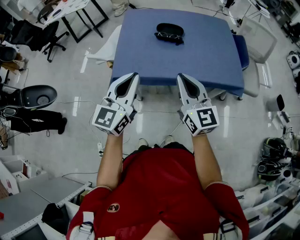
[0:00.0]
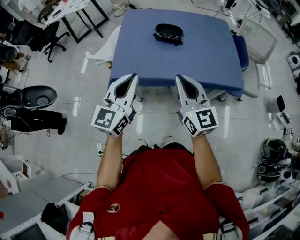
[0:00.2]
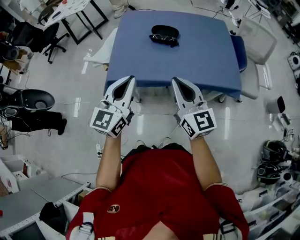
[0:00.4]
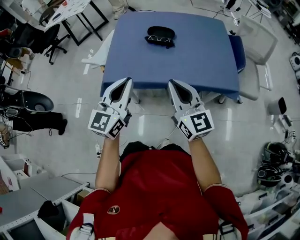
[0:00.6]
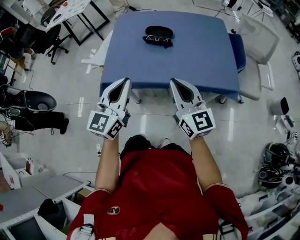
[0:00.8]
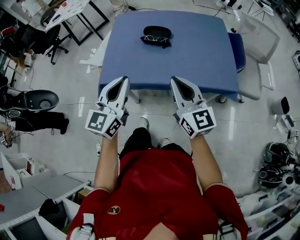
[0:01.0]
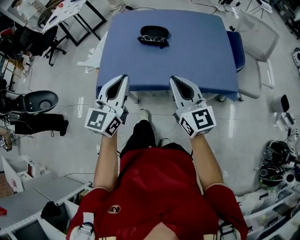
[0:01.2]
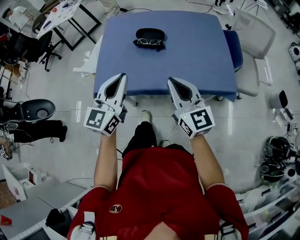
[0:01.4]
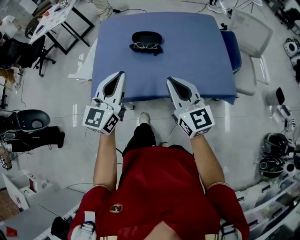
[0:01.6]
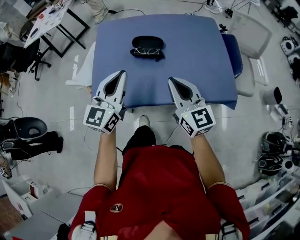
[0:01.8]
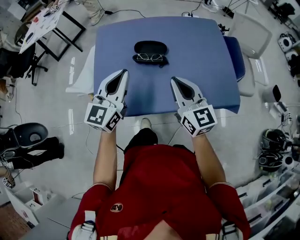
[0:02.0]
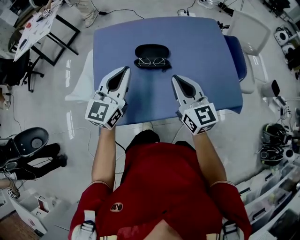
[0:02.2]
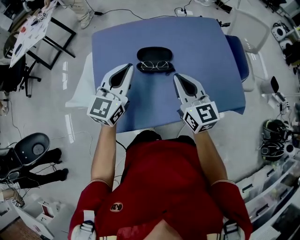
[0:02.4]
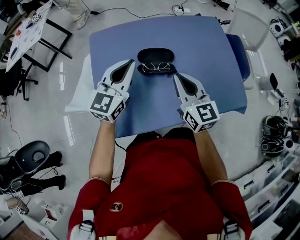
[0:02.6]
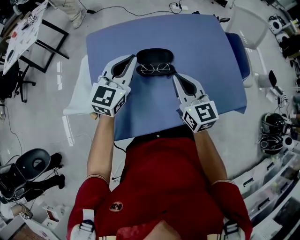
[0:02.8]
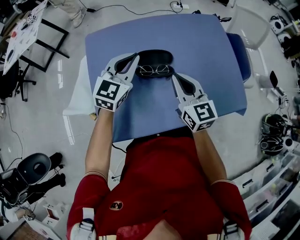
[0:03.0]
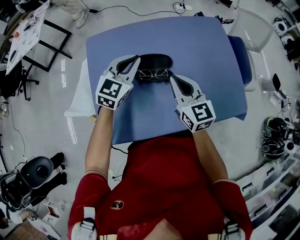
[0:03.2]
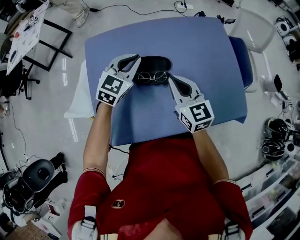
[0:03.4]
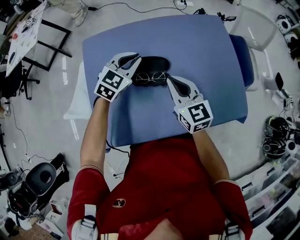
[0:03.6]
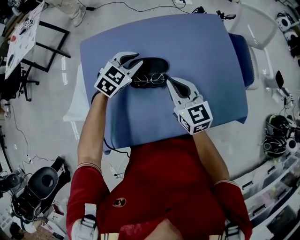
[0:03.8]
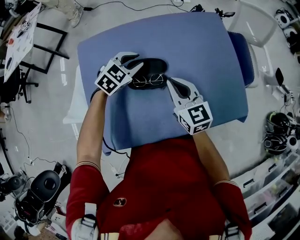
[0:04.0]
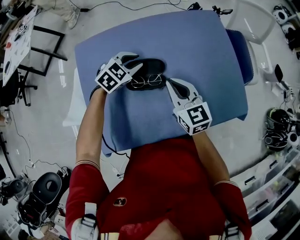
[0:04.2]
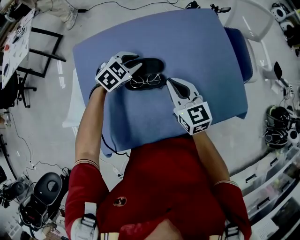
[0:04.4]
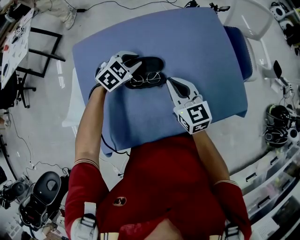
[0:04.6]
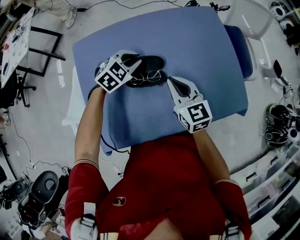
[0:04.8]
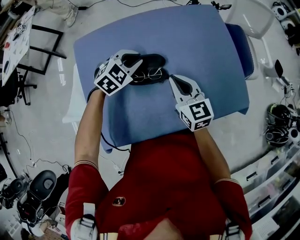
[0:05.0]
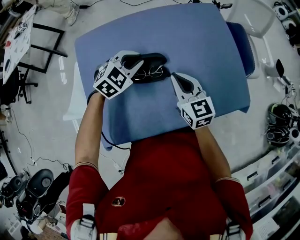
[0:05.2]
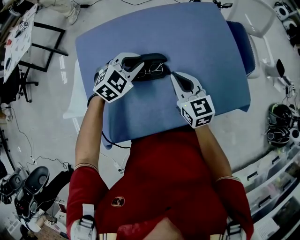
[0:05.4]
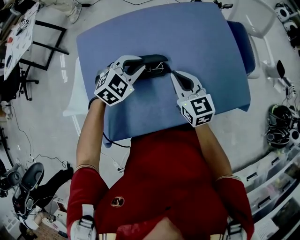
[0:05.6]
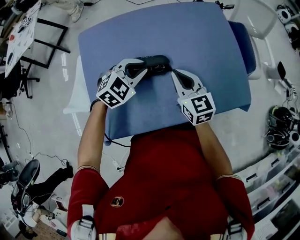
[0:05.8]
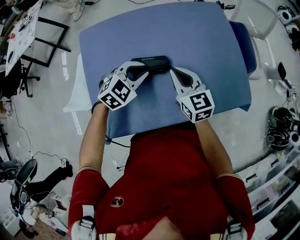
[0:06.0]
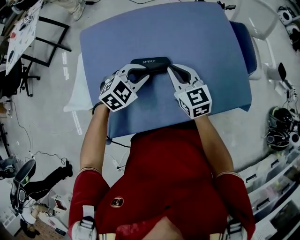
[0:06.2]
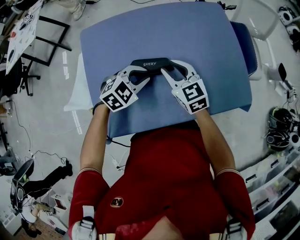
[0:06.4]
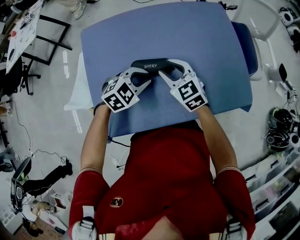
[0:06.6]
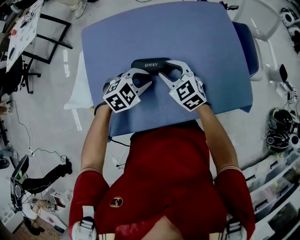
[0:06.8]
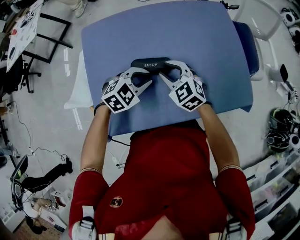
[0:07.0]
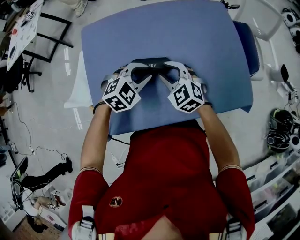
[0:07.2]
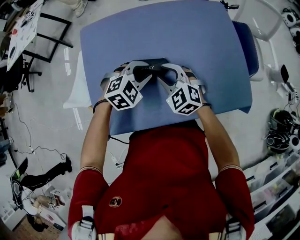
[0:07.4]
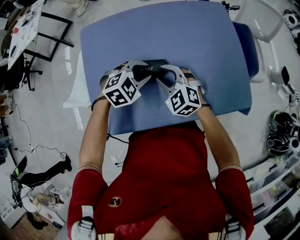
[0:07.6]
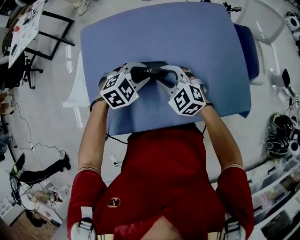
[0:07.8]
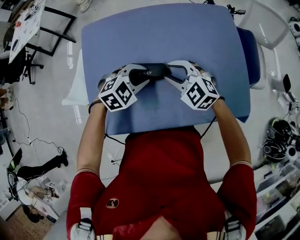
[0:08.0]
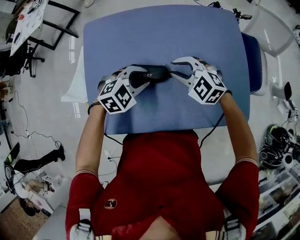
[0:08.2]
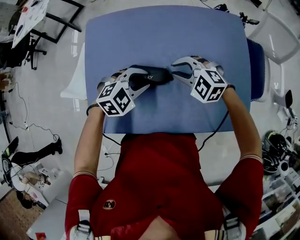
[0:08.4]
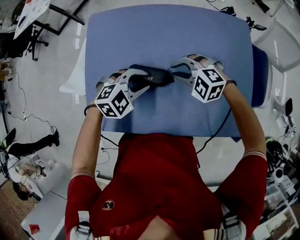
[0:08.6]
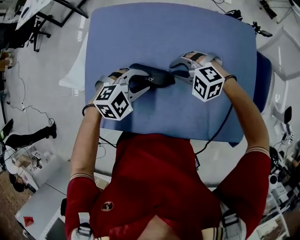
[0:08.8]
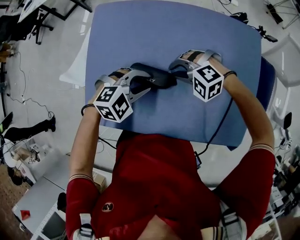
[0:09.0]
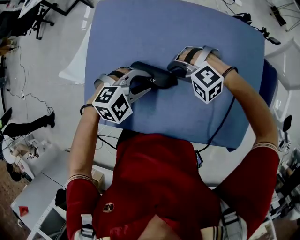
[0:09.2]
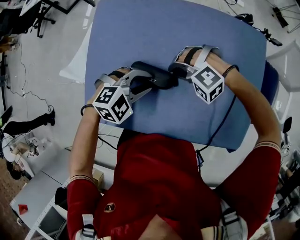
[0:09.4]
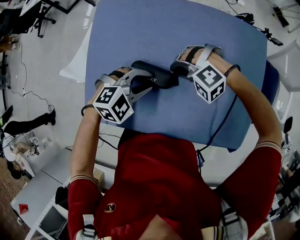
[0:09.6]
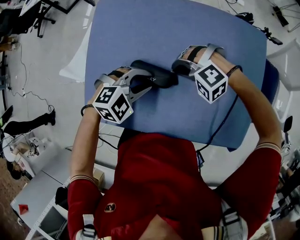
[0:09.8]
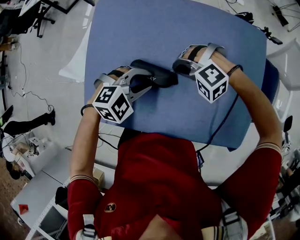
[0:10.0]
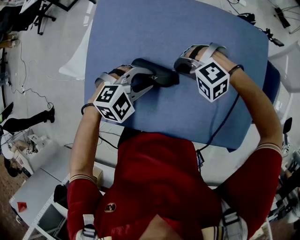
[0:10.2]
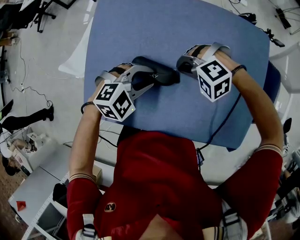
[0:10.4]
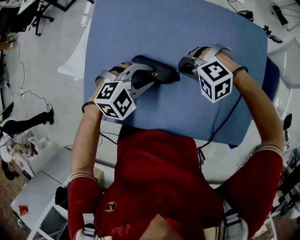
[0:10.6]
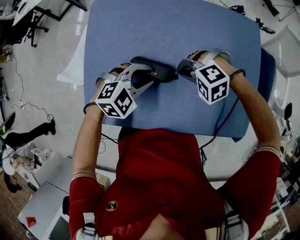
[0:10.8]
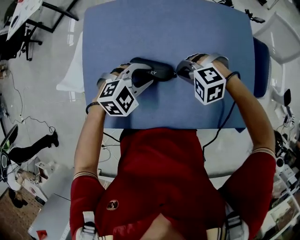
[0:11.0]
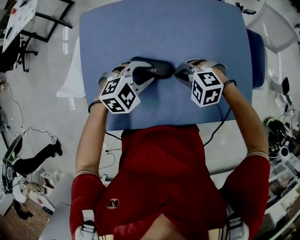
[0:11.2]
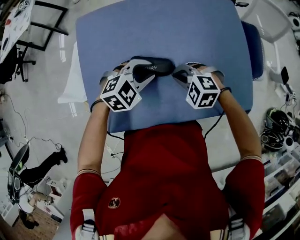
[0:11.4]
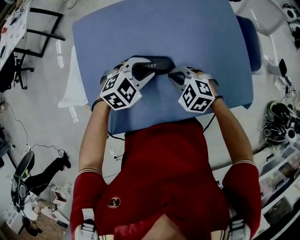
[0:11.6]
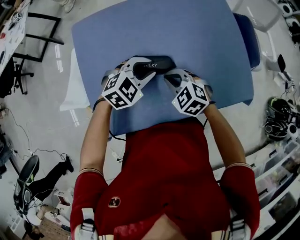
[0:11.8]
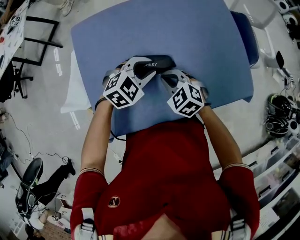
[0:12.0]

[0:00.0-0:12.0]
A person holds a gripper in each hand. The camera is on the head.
0:00.0 to 0:01.6: Both grippers travel together forward and to the right, approximately 15 cm.
0:01.6 to 0:03.0: The left gripper heads forward, covering roughly 30 cm, and rotates approximately 20 degrees. Meanwhile the right gripper shifts approximately 25 cm forward and to the left.
0:03.0 to 0:04.4: The left gripper shifts about 15 cm downward, forward and to the right, tips its fingers downward by some 30 degrees, and opens up; the right gripper shifts by about 10 cm.
0:04.4 to 0:06.0: The left gripper travels backward by roughly 10 cm.
0:06.0 to 0:07.6: The right gripper shifts about 5 cm downward, changes its angle by roughly 50 degrees, and opens its fingers.
0:07.6 to 0:09.0: The right gripper changes place by about 10 cm, and changes its angle by approximately 70 degrees.
0:09.0 to 0:10.4: The grippers move only a little.
0:10.4 to 0:12.0: The right gripper changes place by roughly 10 cm, and rolls clockwise, seen from behind, by about 70 degrees.

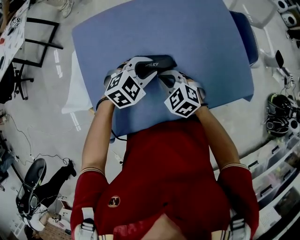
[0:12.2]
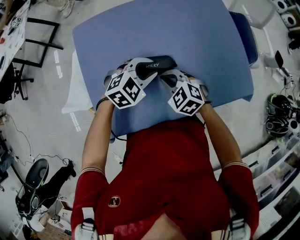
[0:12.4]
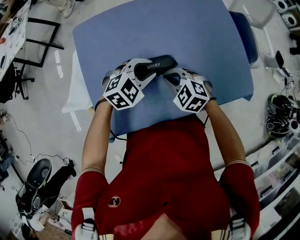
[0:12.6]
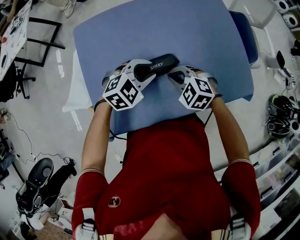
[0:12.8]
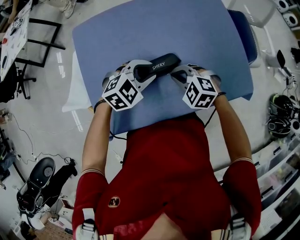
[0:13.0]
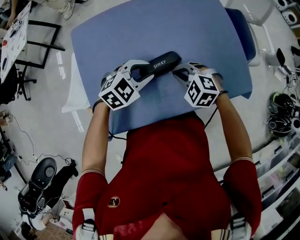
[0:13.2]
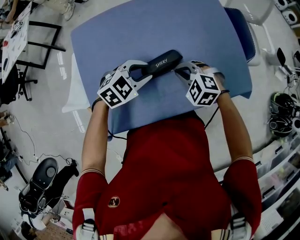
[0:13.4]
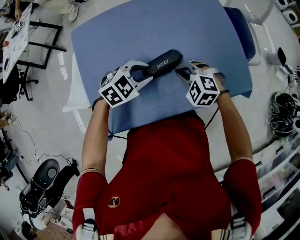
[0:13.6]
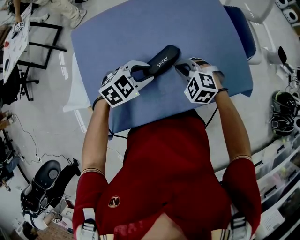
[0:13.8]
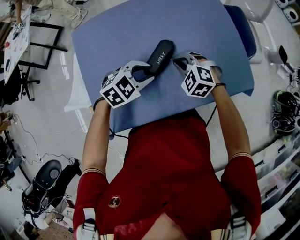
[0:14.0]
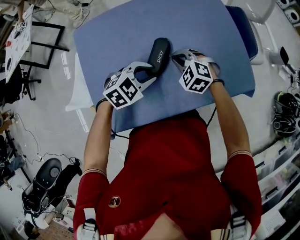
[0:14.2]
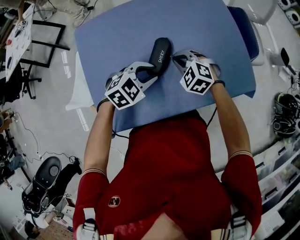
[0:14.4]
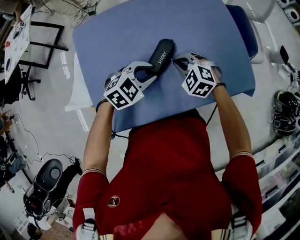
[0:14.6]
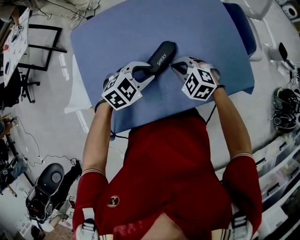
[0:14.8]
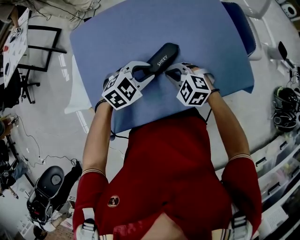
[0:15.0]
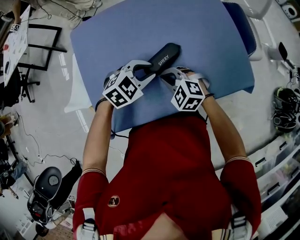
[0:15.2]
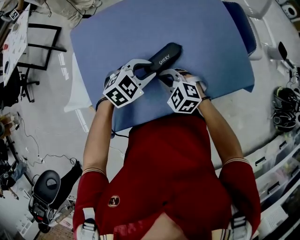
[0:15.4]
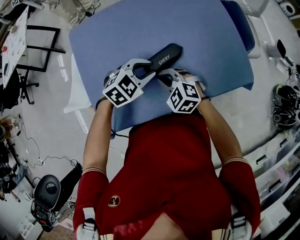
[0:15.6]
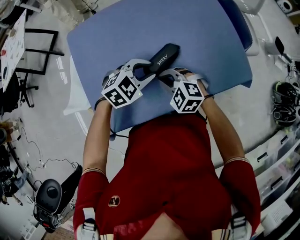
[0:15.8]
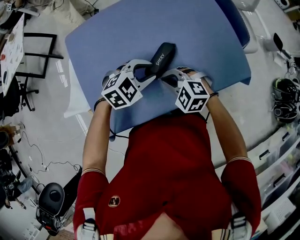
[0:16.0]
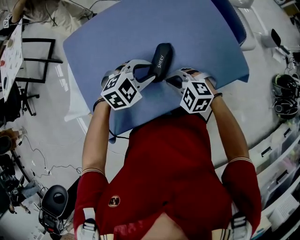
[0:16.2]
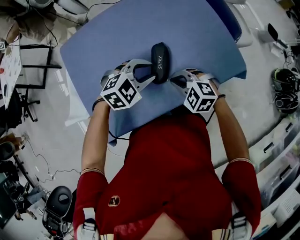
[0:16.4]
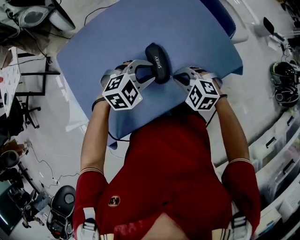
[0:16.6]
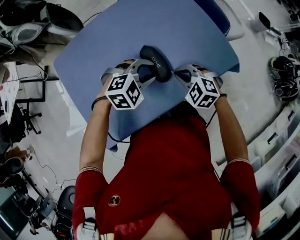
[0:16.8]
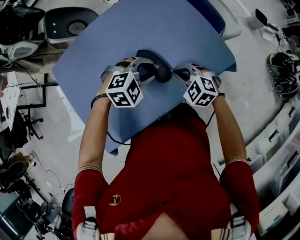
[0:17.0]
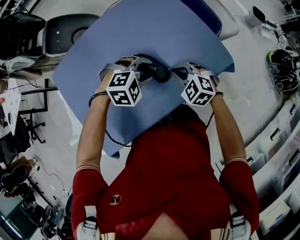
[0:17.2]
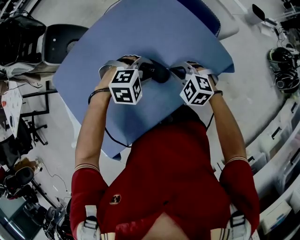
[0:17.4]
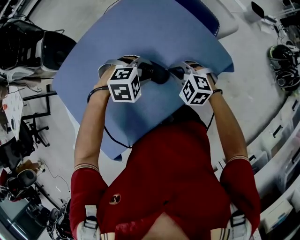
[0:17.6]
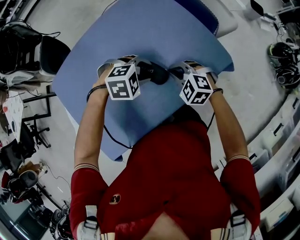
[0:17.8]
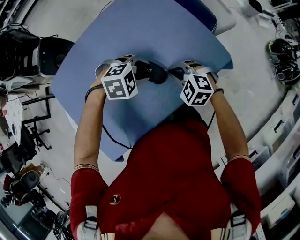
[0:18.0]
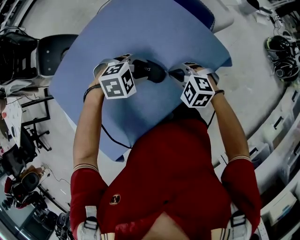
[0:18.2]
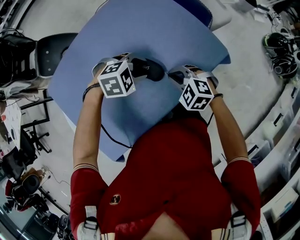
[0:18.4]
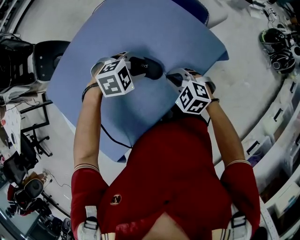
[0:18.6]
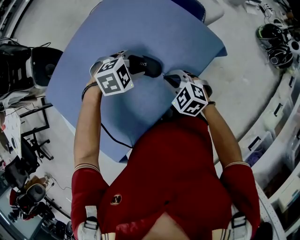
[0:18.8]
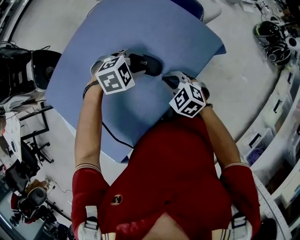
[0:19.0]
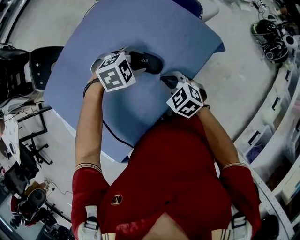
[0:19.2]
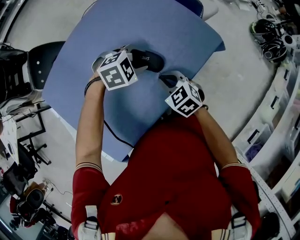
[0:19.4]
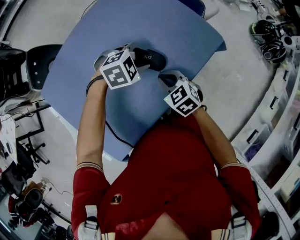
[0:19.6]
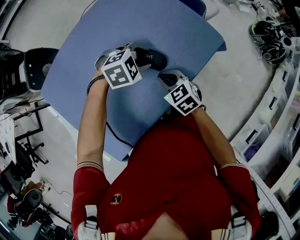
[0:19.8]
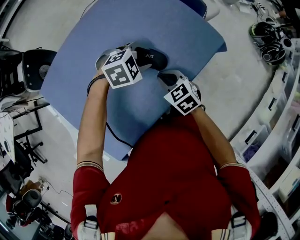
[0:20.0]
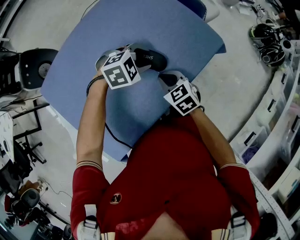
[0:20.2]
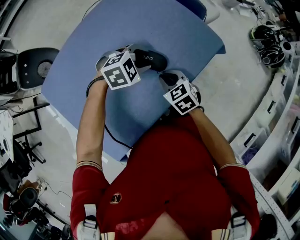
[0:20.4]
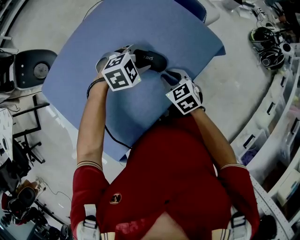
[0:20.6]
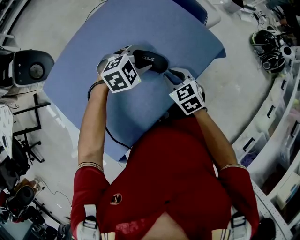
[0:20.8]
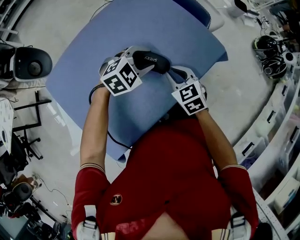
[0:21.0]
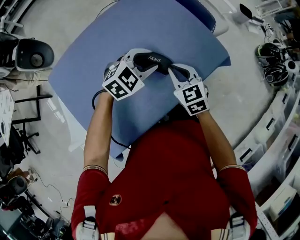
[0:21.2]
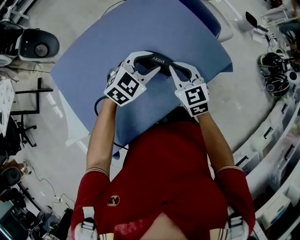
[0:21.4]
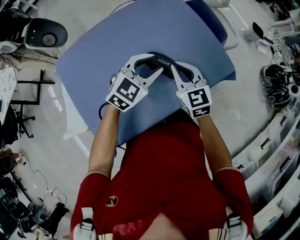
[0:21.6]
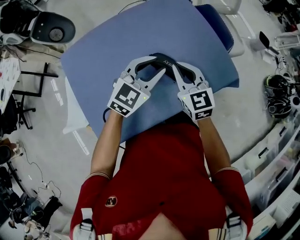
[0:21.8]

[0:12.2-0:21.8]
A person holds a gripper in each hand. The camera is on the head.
0:12.2 to 0:13.8: The right gripper goes about 10 cm to the right.
0:13.8 to 0:15.4: The right gripper heads to the left and backward, covering roughly 10 cm.
0:15.4 to 0:17.0: The left gripper ends up some 10 cm from where it was, and turns by about 40 degrees; the right gripper moves about 15 cm.
0:17.0 to 0:18.6: The left gripper changes place by roughly 5 cm.
0:18.6 to 0:20.2: The right gripper moves about 5 cm, and rotates about 30 degrees.
0:20.2 to 0:21.8: Both grippers move upward, some 15 cm. The right gripper changes its angle by roughly 30 degrees, while the left gripper tips its fingers upward by some 30 degrees.

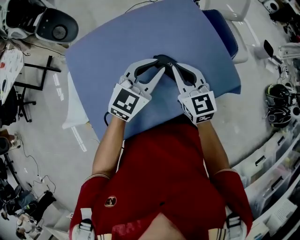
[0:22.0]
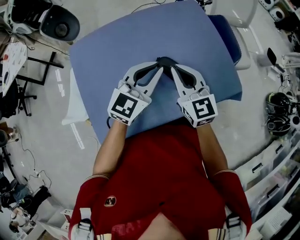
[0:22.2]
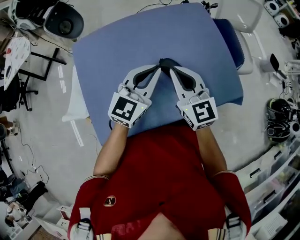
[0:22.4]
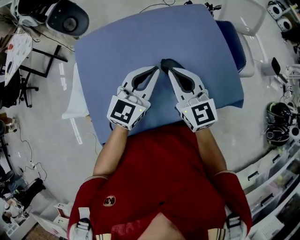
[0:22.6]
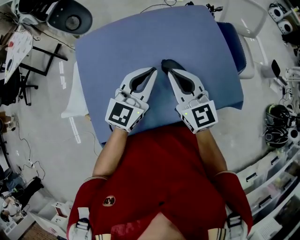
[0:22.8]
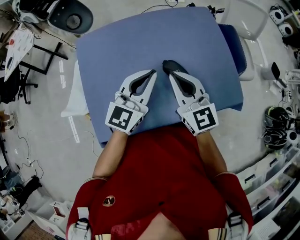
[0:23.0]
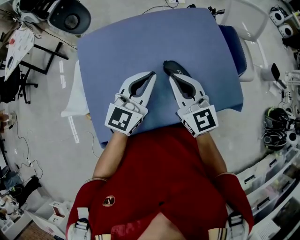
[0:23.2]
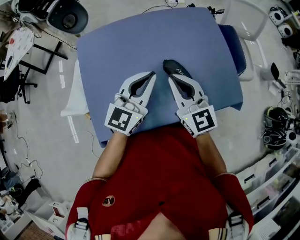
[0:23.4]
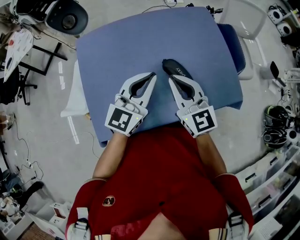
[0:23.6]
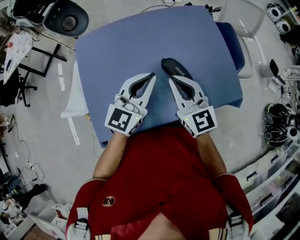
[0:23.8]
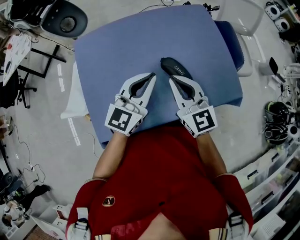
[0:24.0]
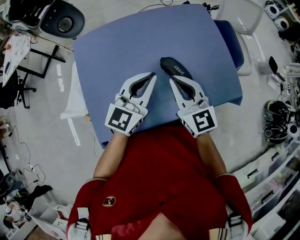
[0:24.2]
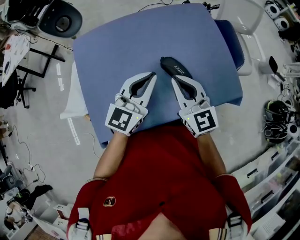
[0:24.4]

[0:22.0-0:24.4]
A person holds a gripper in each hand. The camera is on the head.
0:22.0 to 0:23.2: The two grippers go about 10 cm to the left. The left gripper changes its angle by roughly 20 degrees.
0:23.2 to 0:24.4: The grippers make only small movements.
